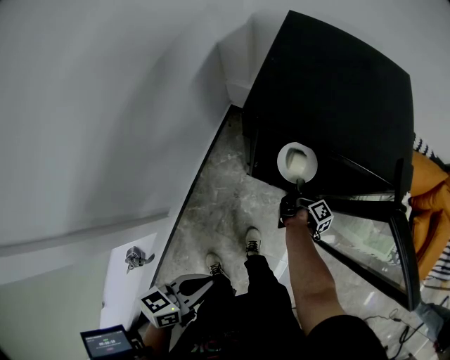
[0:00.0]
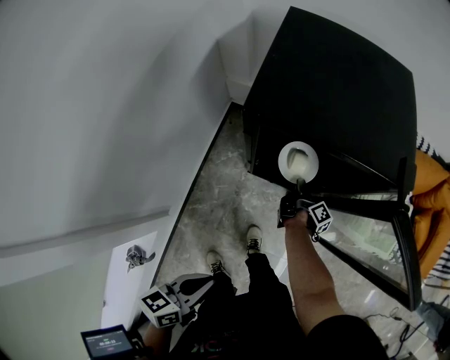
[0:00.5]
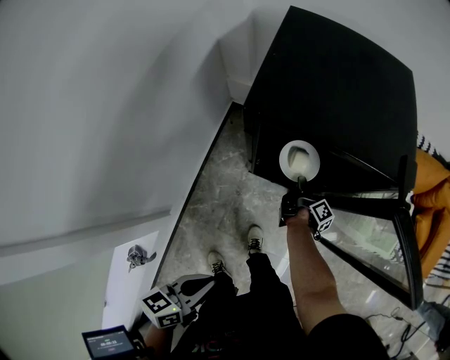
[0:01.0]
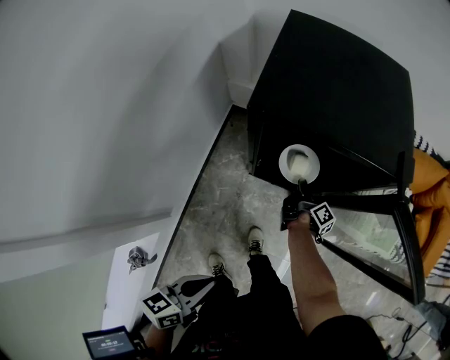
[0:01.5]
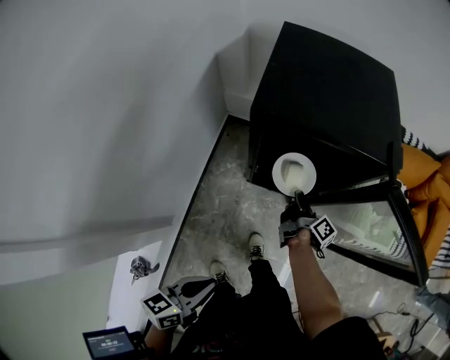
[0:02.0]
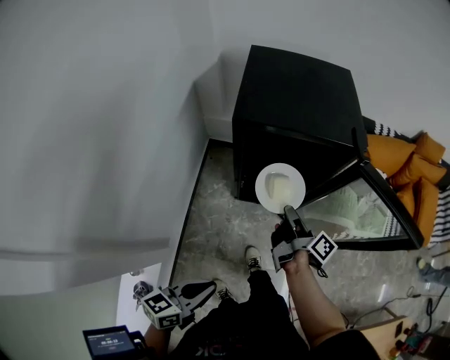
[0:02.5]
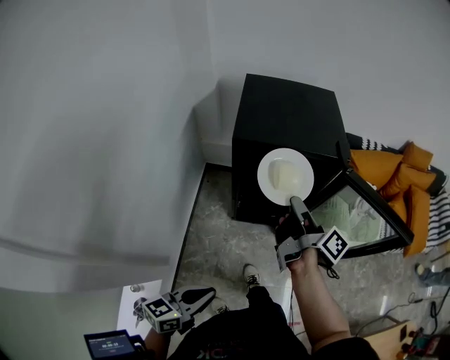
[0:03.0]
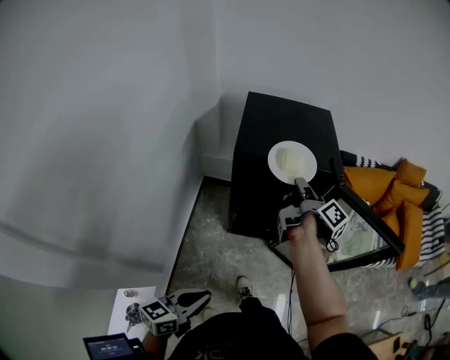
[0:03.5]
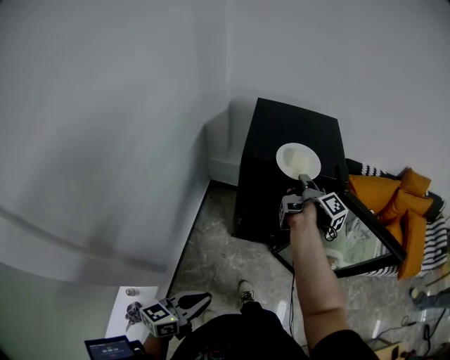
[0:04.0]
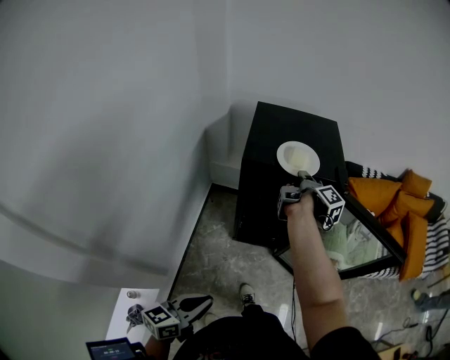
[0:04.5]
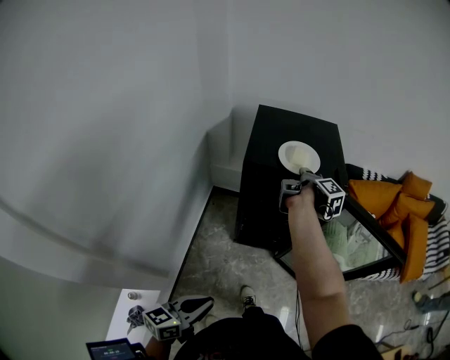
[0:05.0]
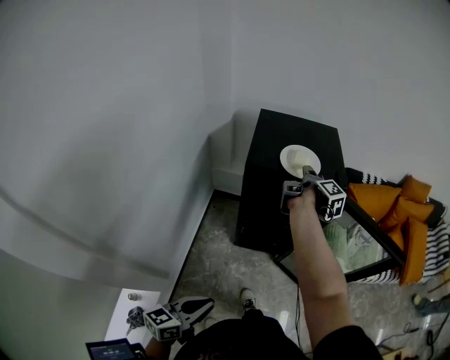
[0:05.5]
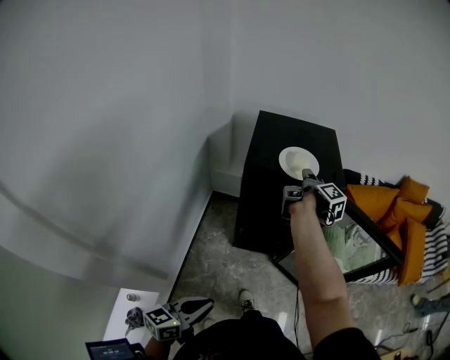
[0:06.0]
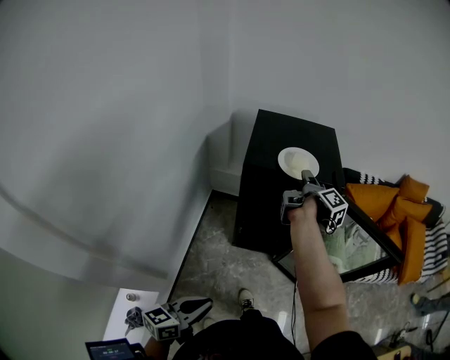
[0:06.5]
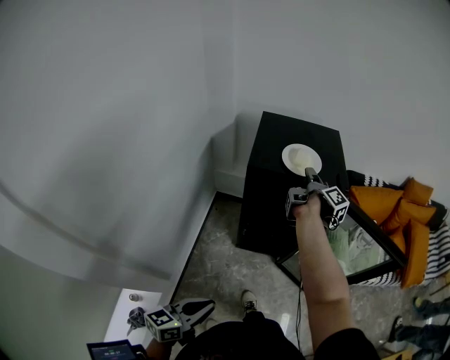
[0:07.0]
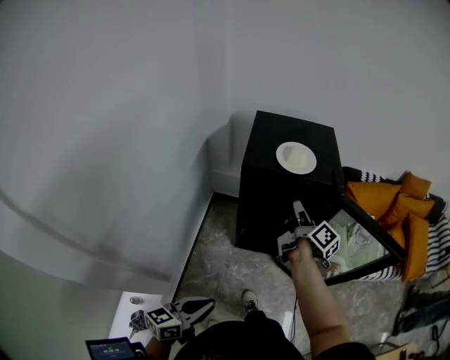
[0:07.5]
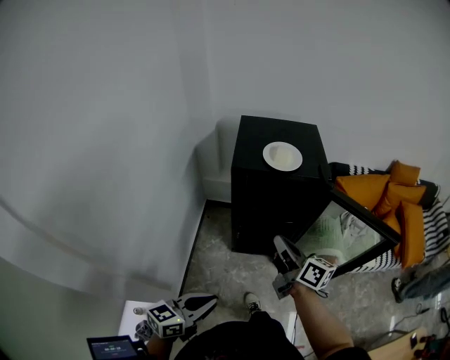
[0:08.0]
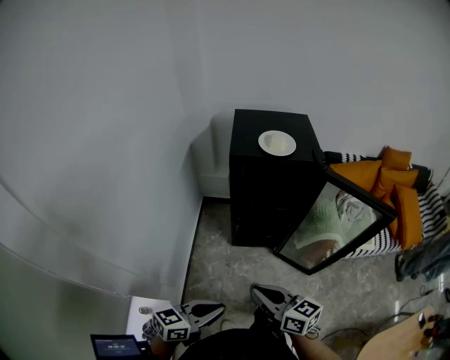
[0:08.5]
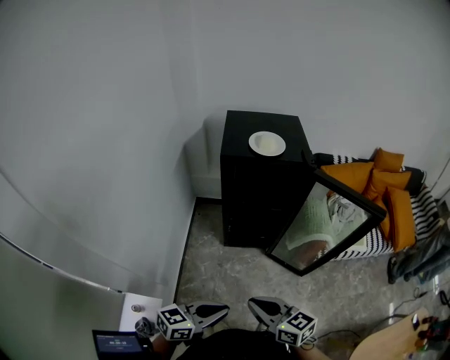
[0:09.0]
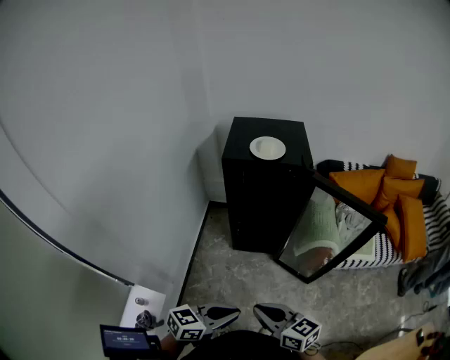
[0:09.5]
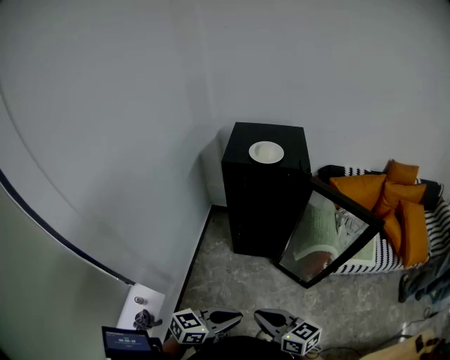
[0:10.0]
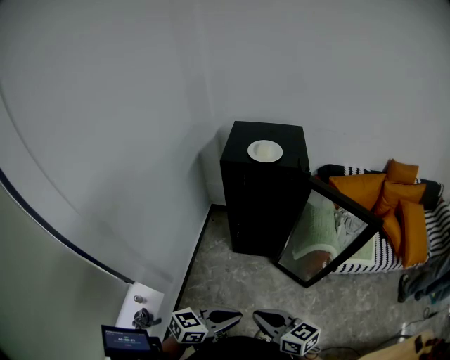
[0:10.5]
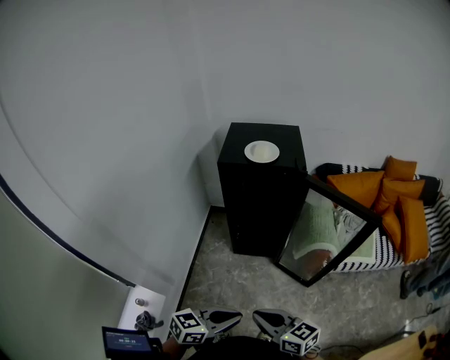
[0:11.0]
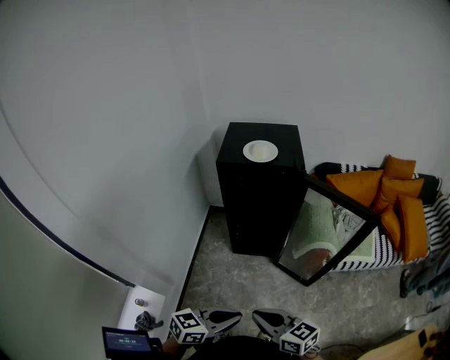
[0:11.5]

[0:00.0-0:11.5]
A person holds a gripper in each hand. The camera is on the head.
0:00.0 to 0:02.0: The right gripper shifts about 10 cm upward and backward.
0:02.0 to 0:04.0: The left gripper is displaced backward by some 5 cm. Meanwhile the right gripper is displaced upward by about 30 cm.
0:04.0 to 0:06.0: The right gripper opens up.
0:06.0 to 0:07.5: The right gripper heads backward, covering about 10 cm, and rotates about 20 degrees.
0:07.5 to 0:09.5: The right gripper heads backward, covering about 40 cm, and changes its angle by approximately 60 degrees. The left gripper is displaced to the right and backward by about 15 cm, and rotates approximately 20 degrees.
0:09.5 to 0:11.5: There are only small adjustments of the grippers.

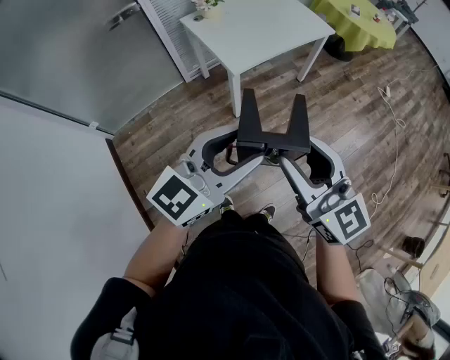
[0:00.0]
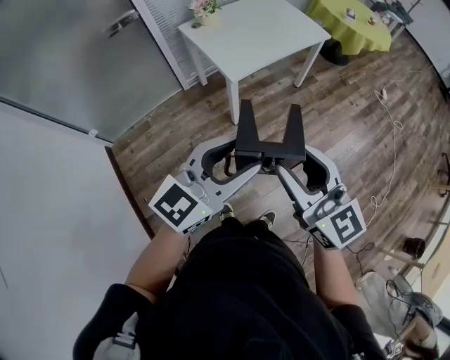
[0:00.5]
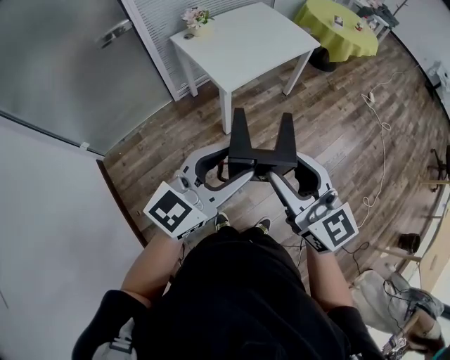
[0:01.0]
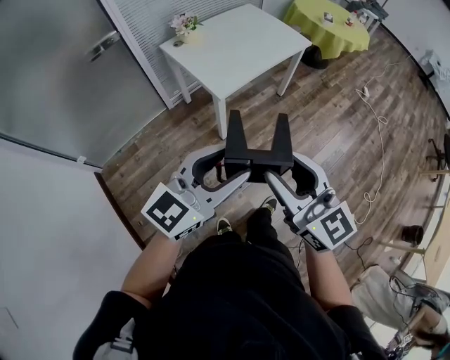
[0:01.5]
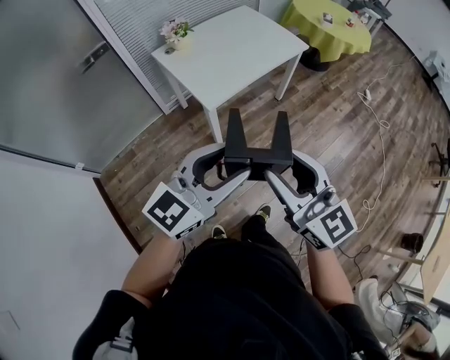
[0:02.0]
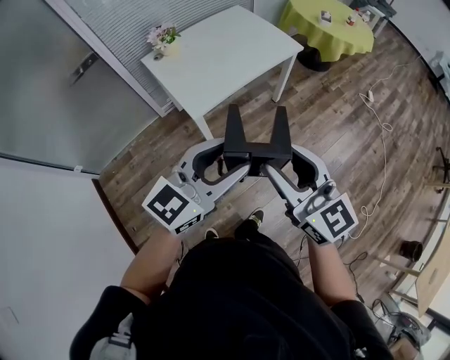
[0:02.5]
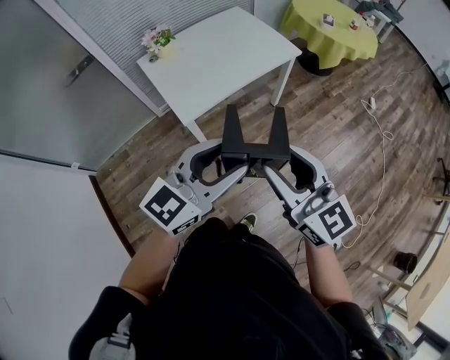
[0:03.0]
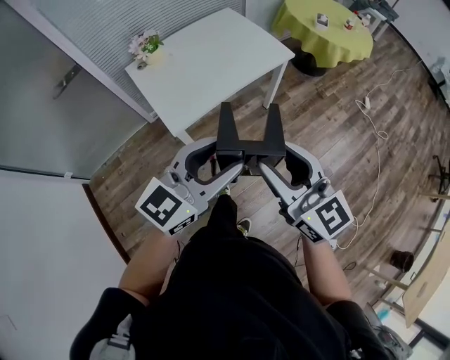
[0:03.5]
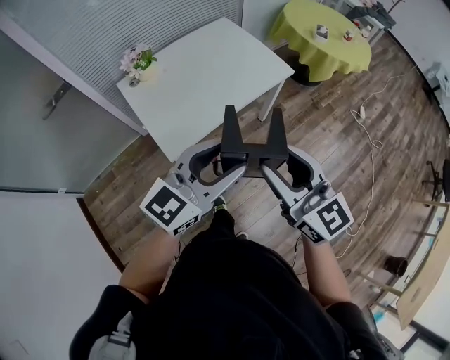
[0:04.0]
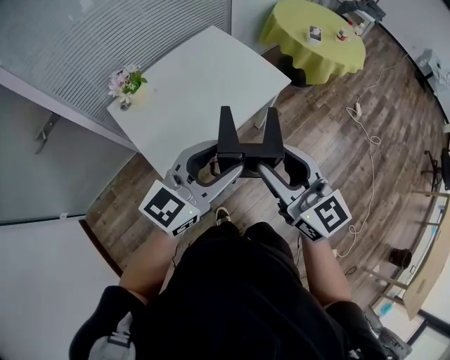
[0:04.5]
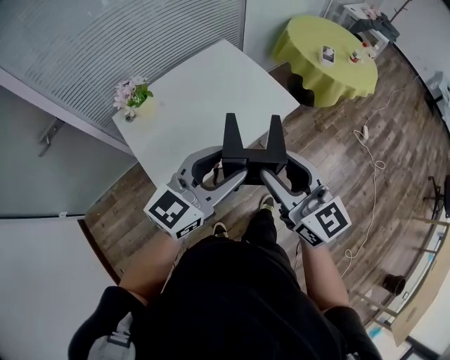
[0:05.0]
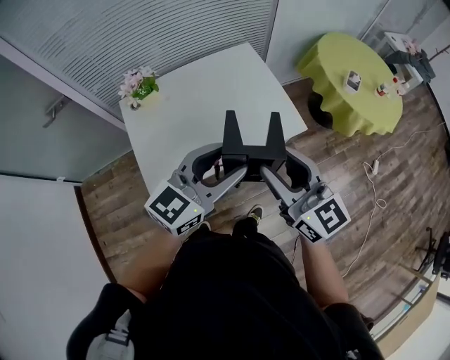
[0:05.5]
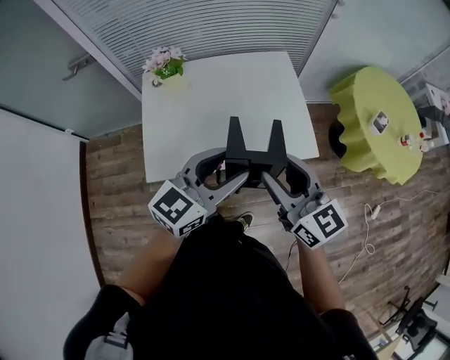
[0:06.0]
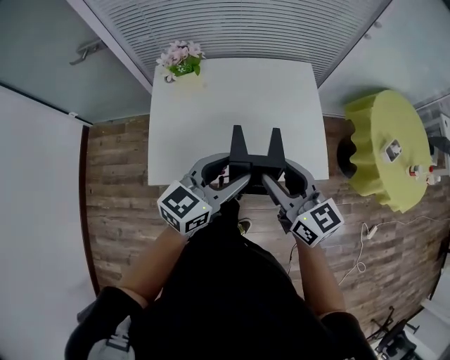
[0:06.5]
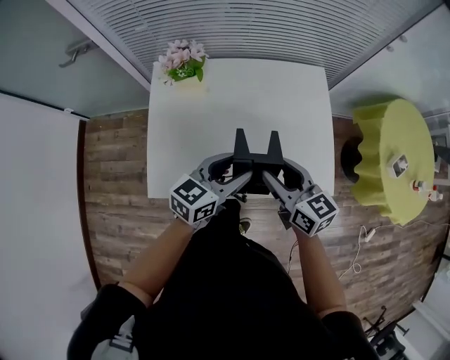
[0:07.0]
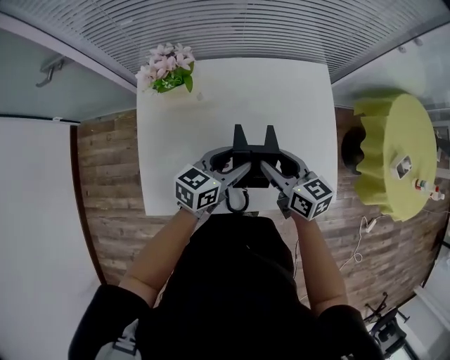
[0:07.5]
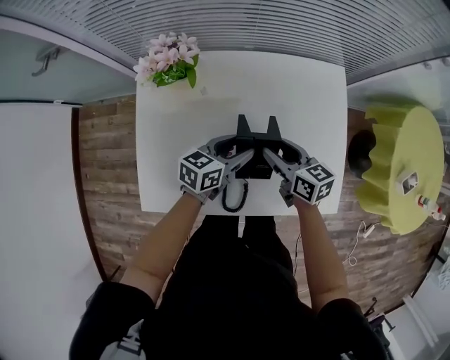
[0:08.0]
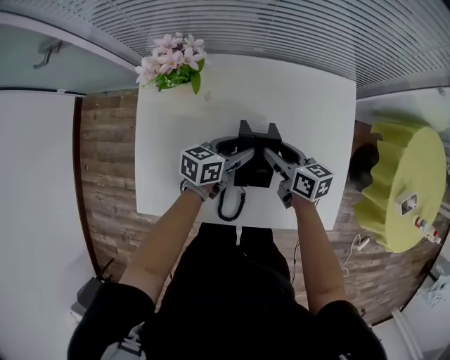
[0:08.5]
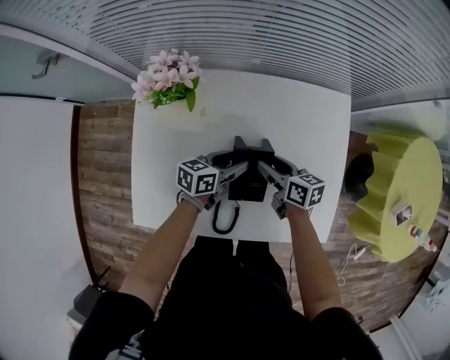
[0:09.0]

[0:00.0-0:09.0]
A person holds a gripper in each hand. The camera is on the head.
0:00.0 to 0:02.0: The grippers both shift forward by some 10 cm.
0:02.0 to 0:04.5: The two grippers go roughly 40 cm forward.
0:04.5 to 0:07.0: The right gripper changes place by approximately 40 cm, and rotates roughly 40 degrees, while the left gripper ends up some 35 cm from where it was, and changes its angle by roughly 50 degrees.
0:07.0 to 0:09.0: Both grippers travel together downward and forward, roughly 25 cm. The left gripper changes its angle by some 30 degrees; the right gripper changes its angle by approximately 30 degrees.

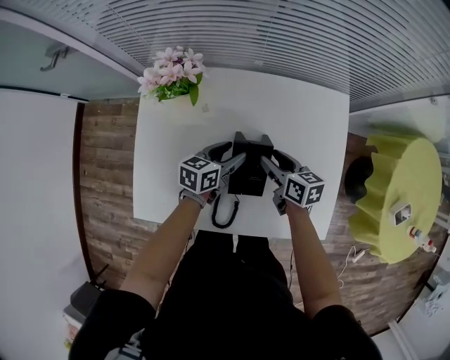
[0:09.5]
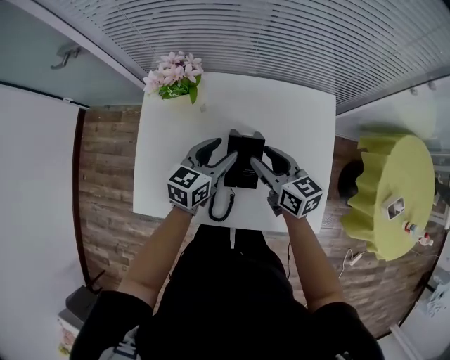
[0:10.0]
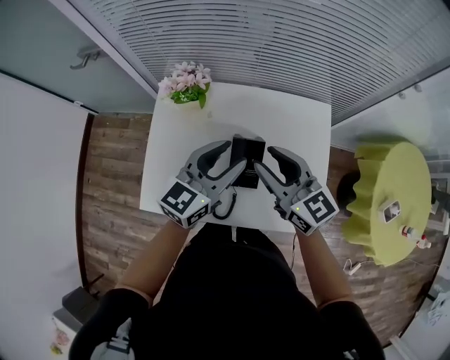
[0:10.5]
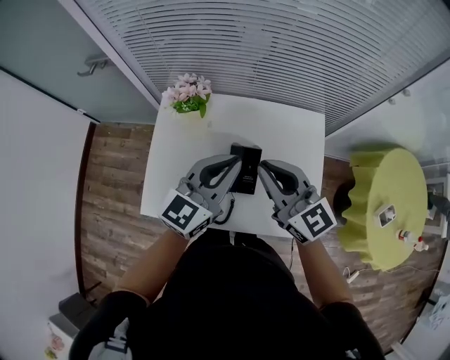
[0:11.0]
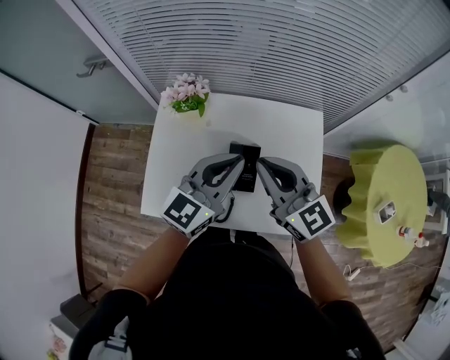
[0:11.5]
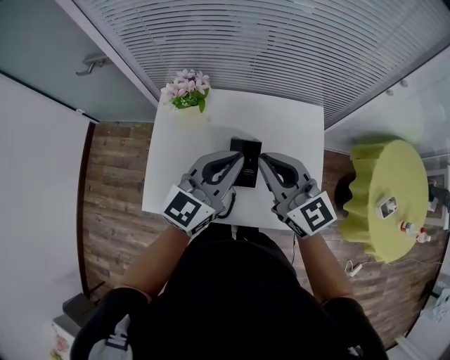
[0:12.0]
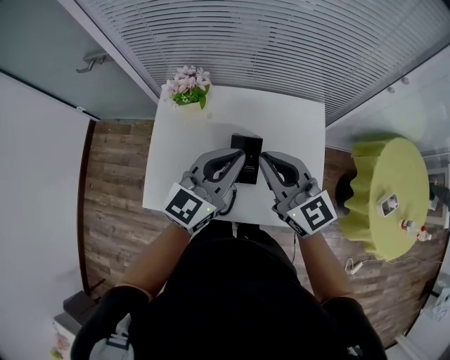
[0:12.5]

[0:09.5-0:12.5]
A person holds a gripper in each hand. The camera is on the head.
0:09.5 to 0:11.0: The grippers both shift upward by about 30 cm. The left gripper changes its angle by roughly 40 degrees, and closes its fingers. The right gripper angles its fingers upward, by roughly 30 degrees, and closes its fingers.
0:11.0 to 0:12.5: There are only small adjustments of the grippers.

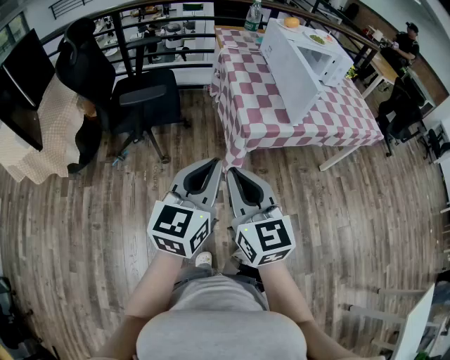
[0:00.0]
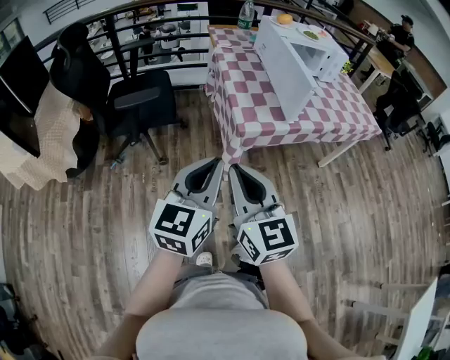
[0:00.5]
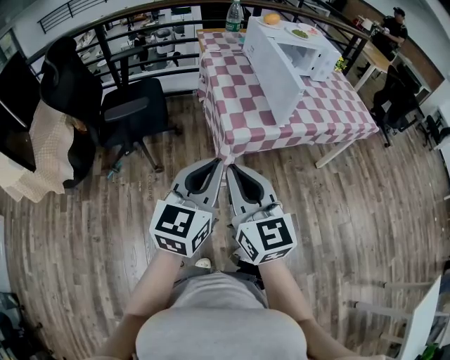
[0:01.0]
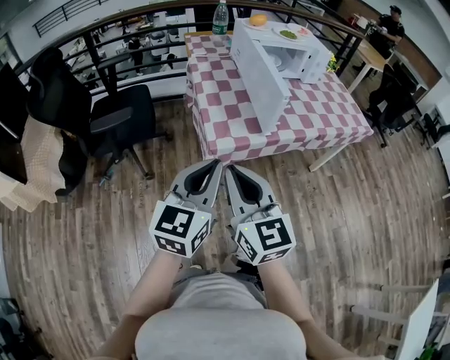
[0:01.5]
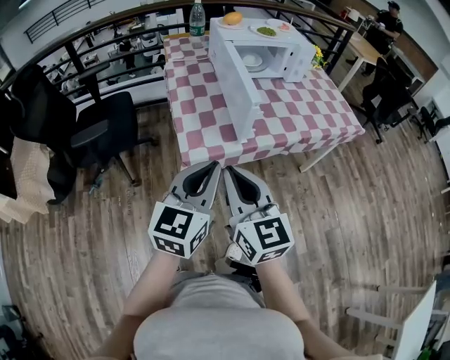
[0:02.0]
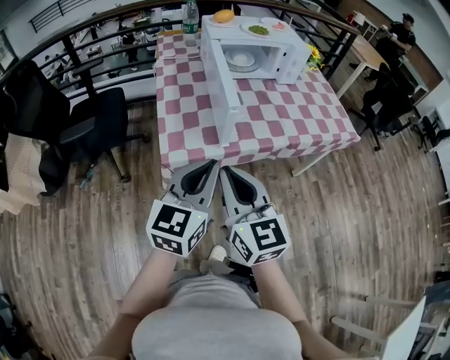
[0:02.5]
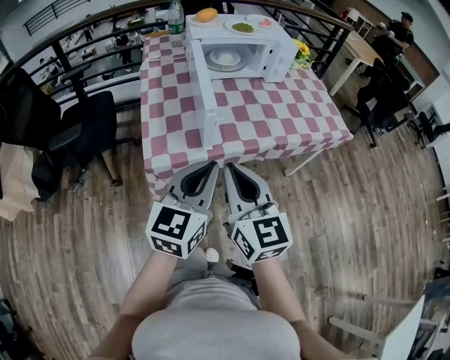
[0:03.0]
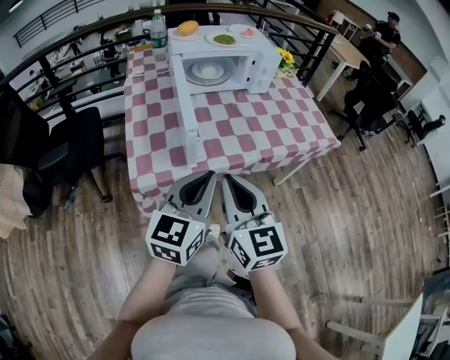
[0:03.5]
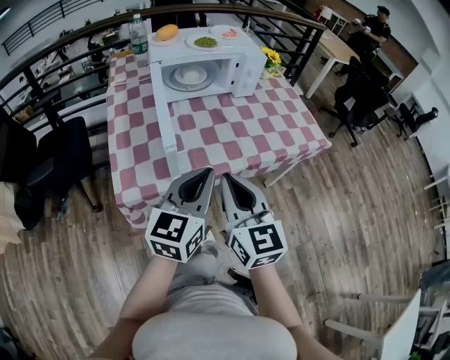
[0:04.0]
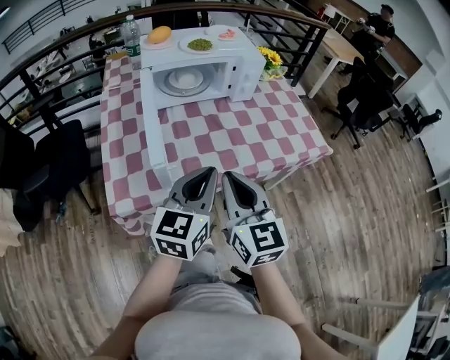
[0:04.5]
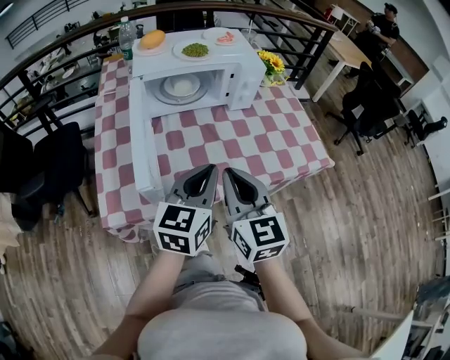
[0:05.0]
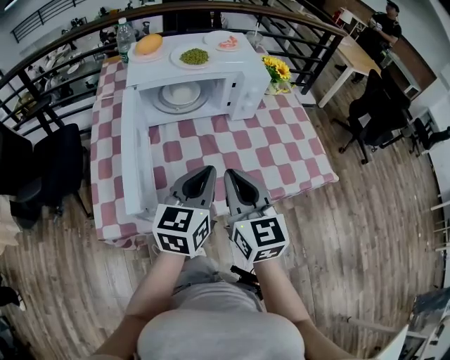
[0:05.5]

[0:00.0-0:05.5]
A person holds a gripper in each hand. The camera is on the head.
0:00.0 to 0:02.0: Both grippers move to the right and forward, approximately 25 cm.
0:02.0 to 0:03.5: Both grippers travel together to the right and forward, approximately 20 cm.
0:03.5 to 0:05.5: The two grippers go some 25 cm forward and to the right.
